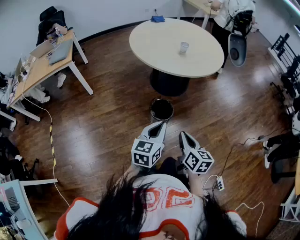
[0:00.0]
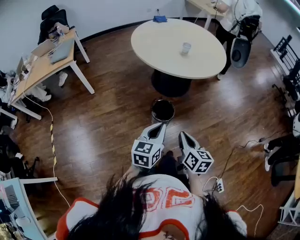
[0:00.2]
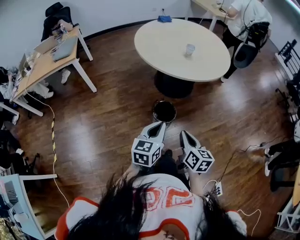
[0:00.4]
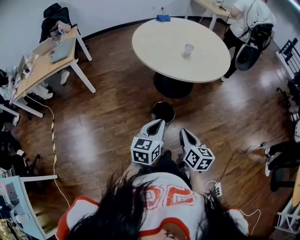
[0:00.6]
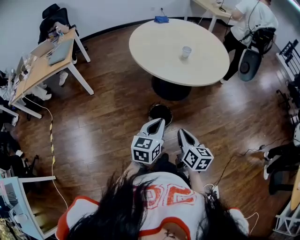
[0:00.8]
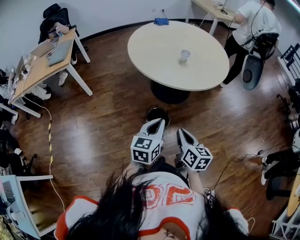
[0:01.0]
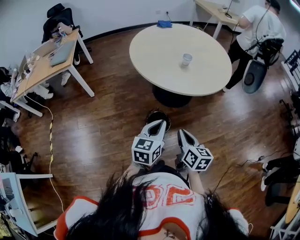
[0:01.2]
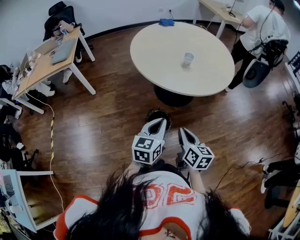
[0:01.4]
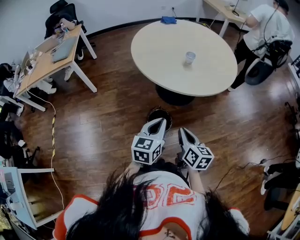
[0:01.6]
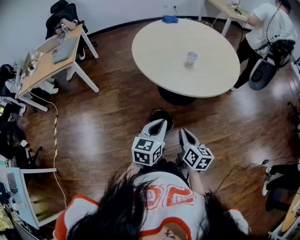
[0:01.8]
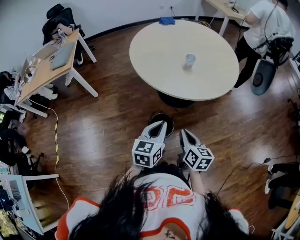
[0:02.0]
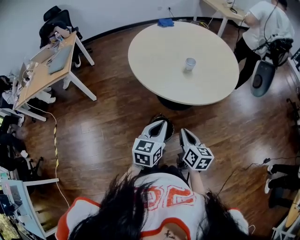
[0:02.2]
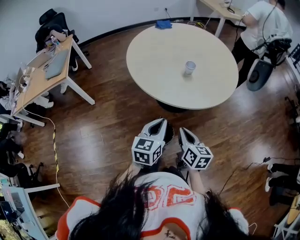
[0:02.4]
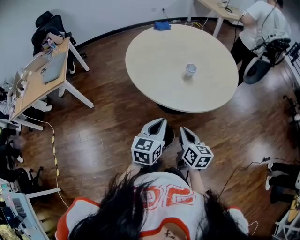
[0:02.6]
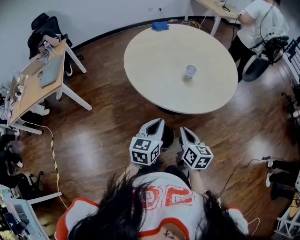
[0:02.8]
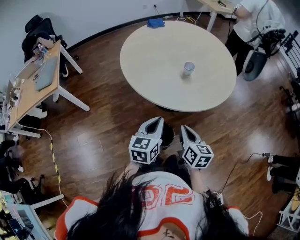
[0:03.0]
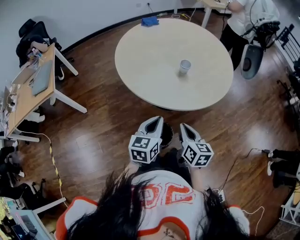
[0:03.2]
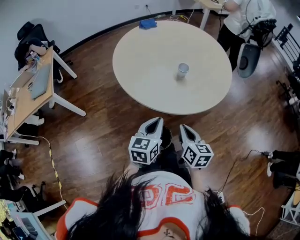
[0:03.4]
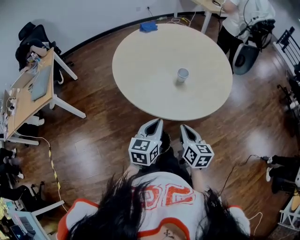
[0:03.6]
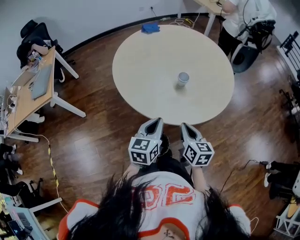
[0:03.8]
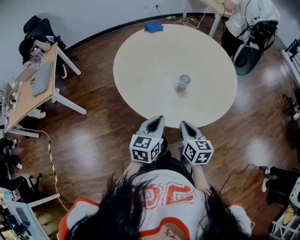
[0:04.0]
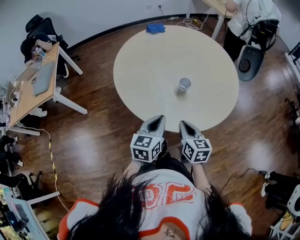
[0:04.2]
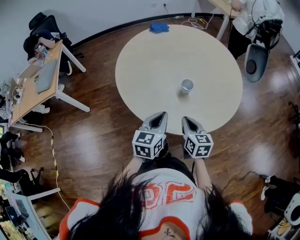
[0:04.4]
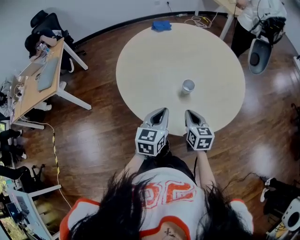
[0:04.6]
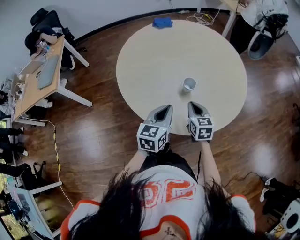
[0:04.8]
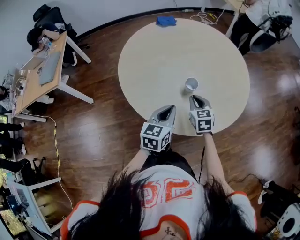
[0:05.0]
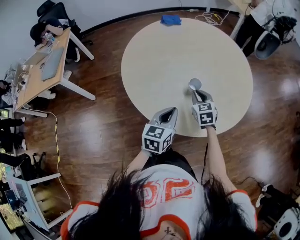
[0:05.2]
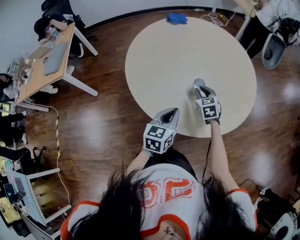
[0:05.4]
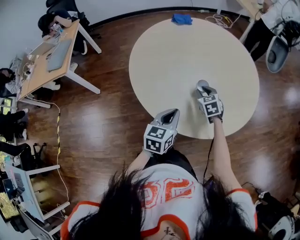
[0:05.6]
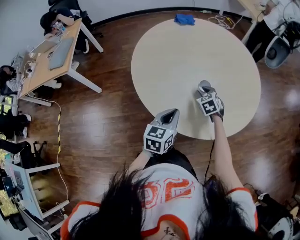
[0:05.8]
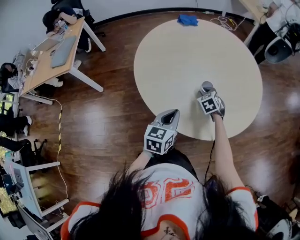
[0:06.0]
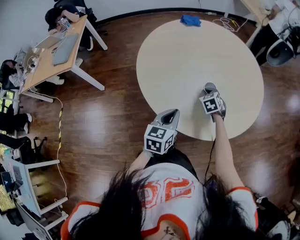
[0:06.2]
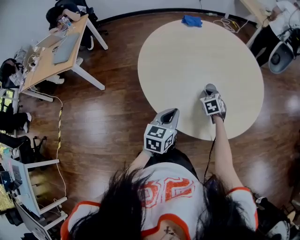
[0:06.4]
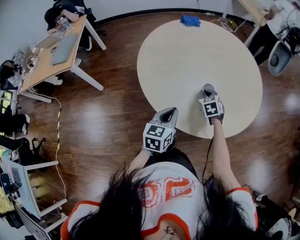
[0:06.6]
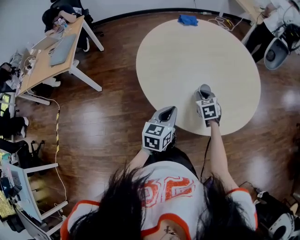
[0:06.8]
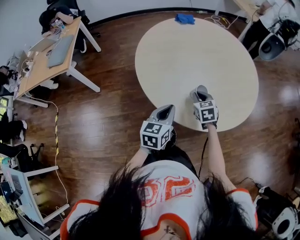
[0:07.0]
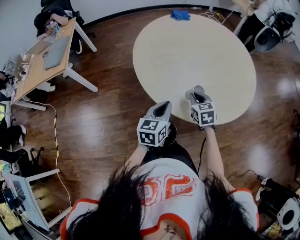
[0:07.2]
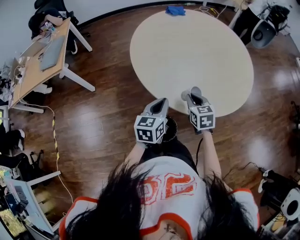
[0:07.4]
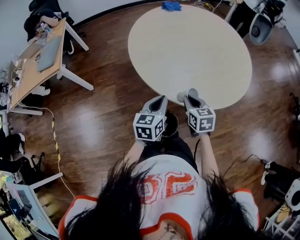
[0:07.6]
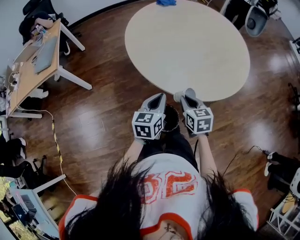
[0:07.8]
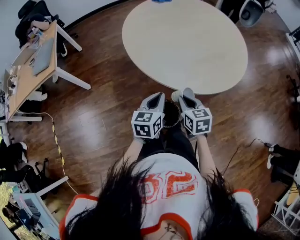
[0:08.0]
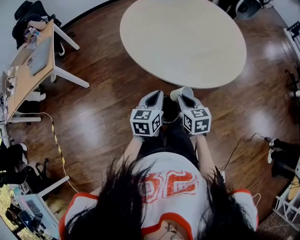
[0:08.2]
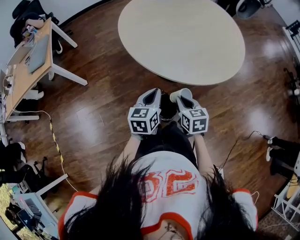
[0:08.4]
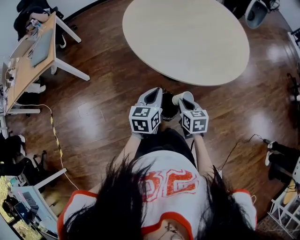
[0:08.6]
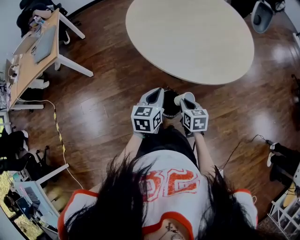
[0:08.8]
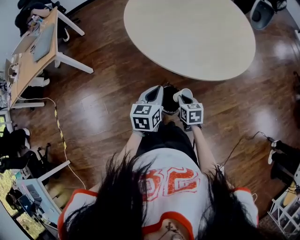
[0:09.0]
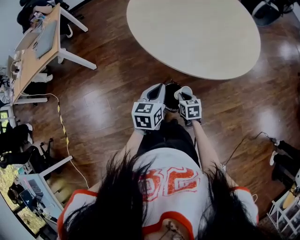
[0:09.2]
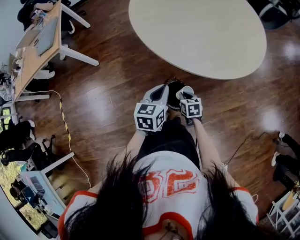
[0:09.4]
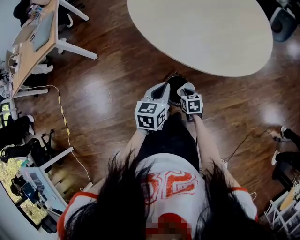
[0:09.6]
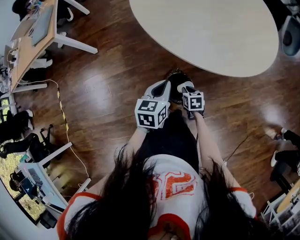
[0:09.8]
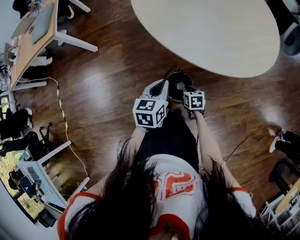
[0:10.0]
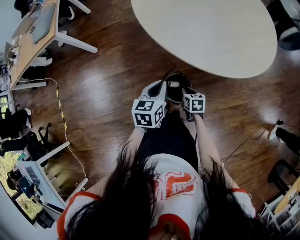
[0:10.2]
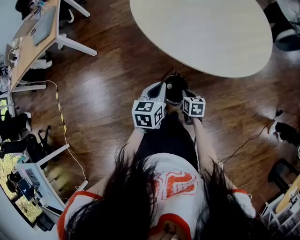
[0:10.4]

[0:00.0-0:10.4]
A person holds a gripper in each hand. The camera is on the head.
0:00.0 to 0:01.4: The right gripper goes roughly 15 cm forward; the left gripper goes roughly 15 cm forward and to the right.
0:01.4 to 0:03.0: Both grippers move forward, some 15 cm.
0:03.0 to 0:04.4: The left gripper moves forward and to the right, some 15 cm, while the right gripper is displaced forward by roughly 15 cm.
0:04.4 to 0:06.0: The right gripper travels forward and downward by some 20 cm, rotates around the line of its fingers by about 40 degrees, counterclockwise from behind, and opens its fingers.
0:06.0 to 0:07.4: The left gripper shifts roughly 5 cm to the left. Meanwhile the right gripper travels backward, upward and to the left by some 20 cm, and turns by roughly 30 degrees.
0:07.4 to 0:09.0: The left gripper travels backward by roughly 10 cm. The right gripper travels backward and downward by roughly 20 cm.
0:09.0 to 0:10.4: The right gripper heads downward, covering some 10 cm.

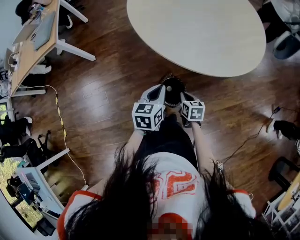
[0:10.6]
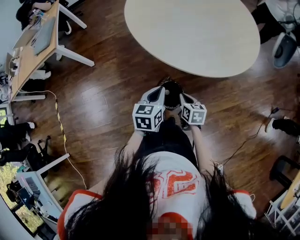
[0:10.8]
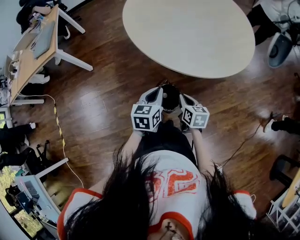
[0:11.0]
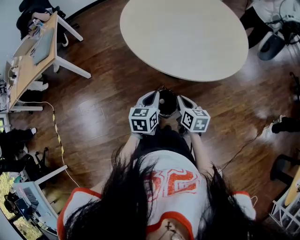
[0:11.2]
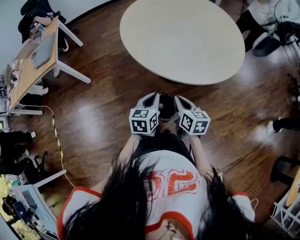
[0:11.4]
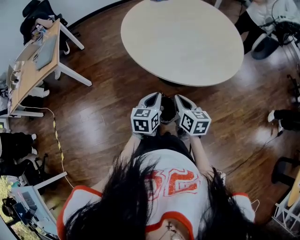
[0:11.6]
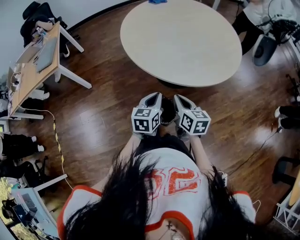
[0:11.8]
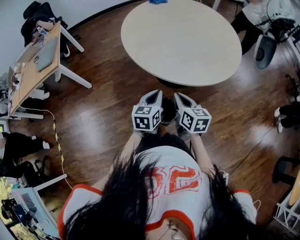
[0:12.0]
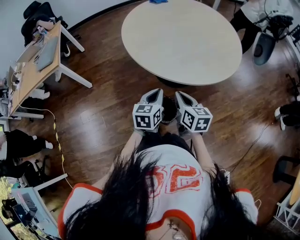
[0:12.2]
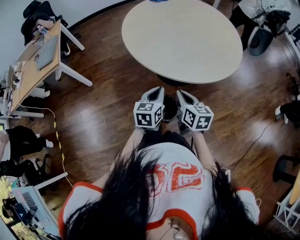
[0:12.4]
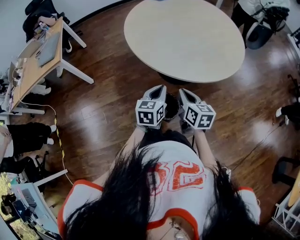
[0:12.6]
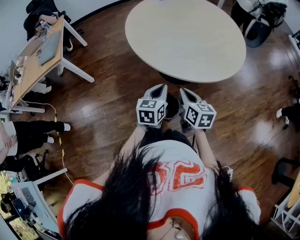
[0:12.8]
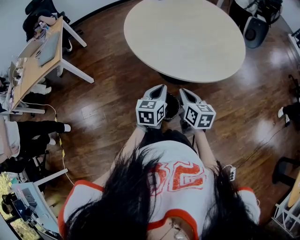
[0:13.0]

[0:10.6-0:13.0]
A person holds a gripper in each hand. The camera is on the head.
0:10.6 to 0:11.8: The left gripper ends up approximately 5 cm from where it was; the right gripper shifts approximately 20 cm upward, and swivels some 20 degrees.
0:11.8 to 0:13.0: The grippers make only small movements.

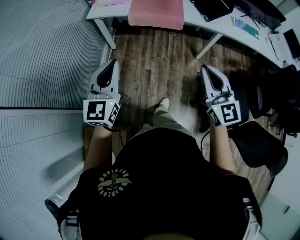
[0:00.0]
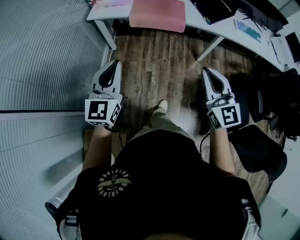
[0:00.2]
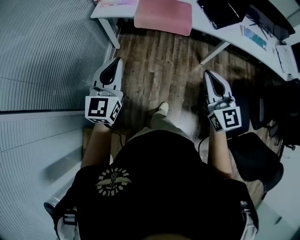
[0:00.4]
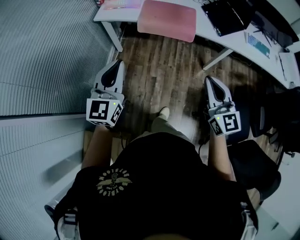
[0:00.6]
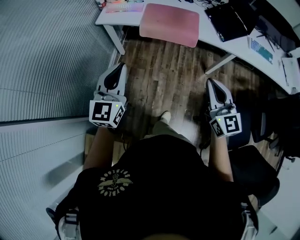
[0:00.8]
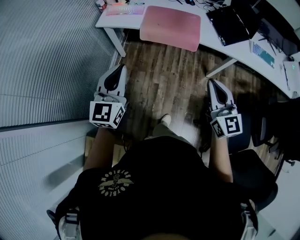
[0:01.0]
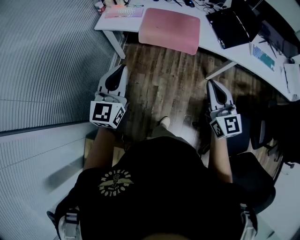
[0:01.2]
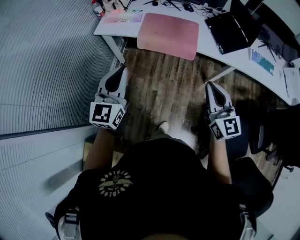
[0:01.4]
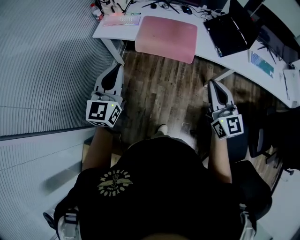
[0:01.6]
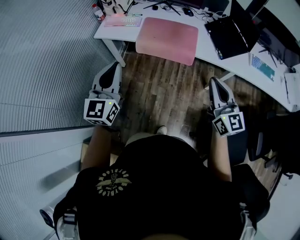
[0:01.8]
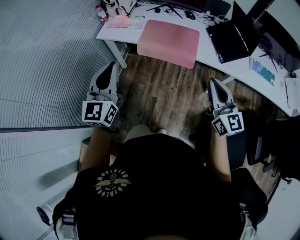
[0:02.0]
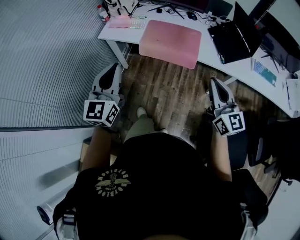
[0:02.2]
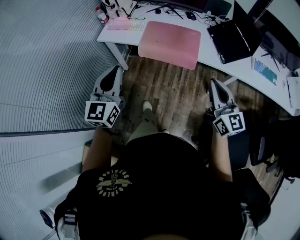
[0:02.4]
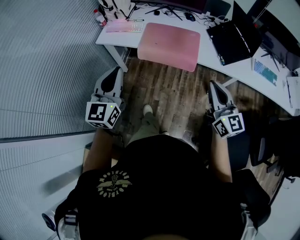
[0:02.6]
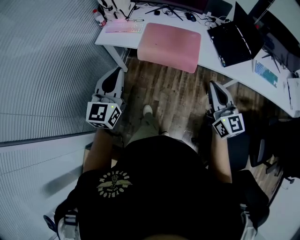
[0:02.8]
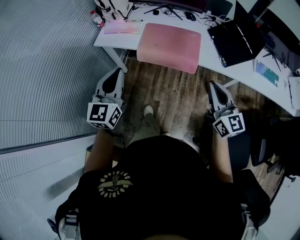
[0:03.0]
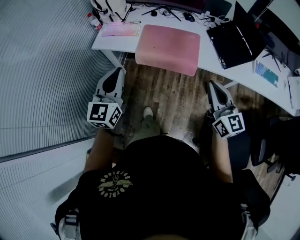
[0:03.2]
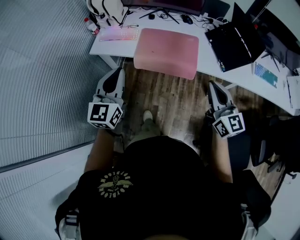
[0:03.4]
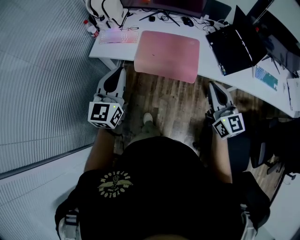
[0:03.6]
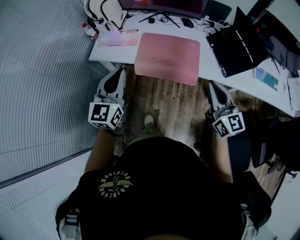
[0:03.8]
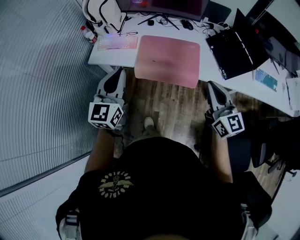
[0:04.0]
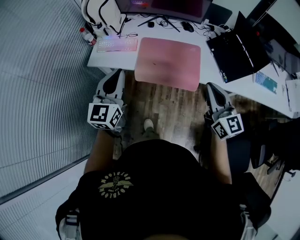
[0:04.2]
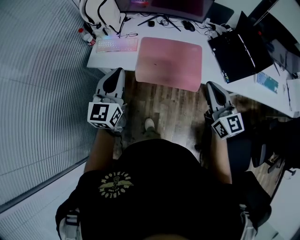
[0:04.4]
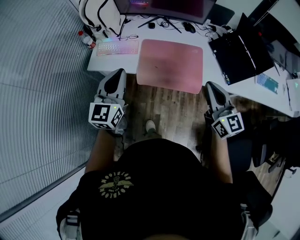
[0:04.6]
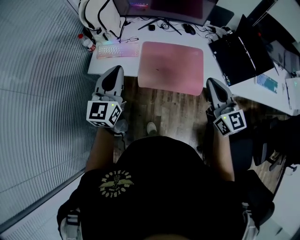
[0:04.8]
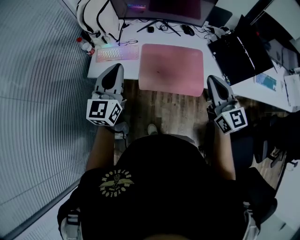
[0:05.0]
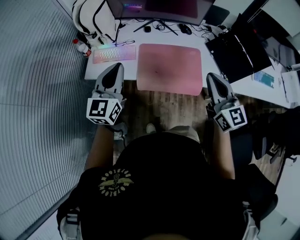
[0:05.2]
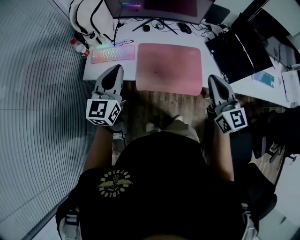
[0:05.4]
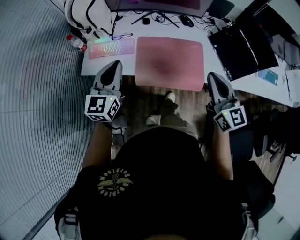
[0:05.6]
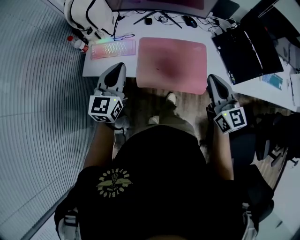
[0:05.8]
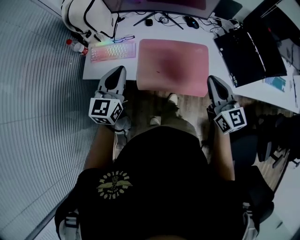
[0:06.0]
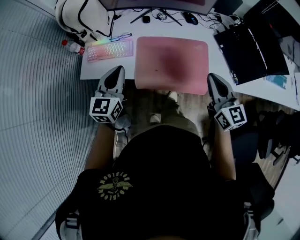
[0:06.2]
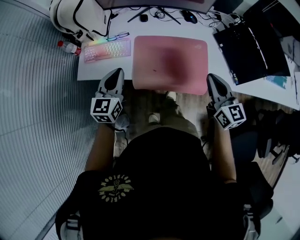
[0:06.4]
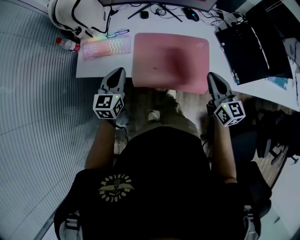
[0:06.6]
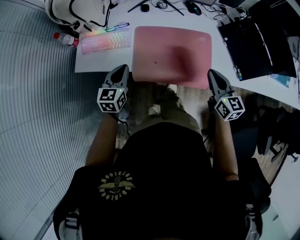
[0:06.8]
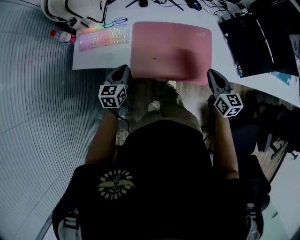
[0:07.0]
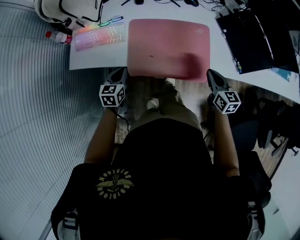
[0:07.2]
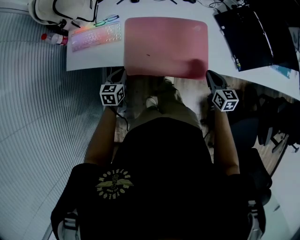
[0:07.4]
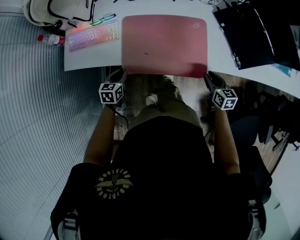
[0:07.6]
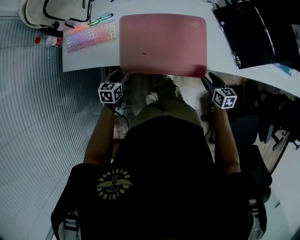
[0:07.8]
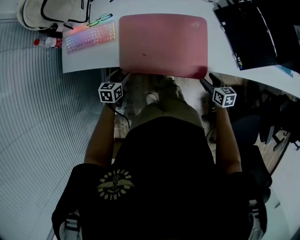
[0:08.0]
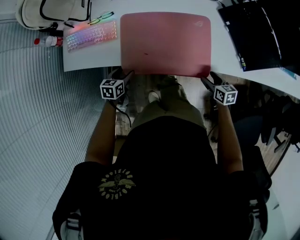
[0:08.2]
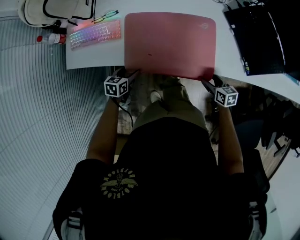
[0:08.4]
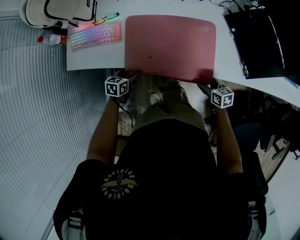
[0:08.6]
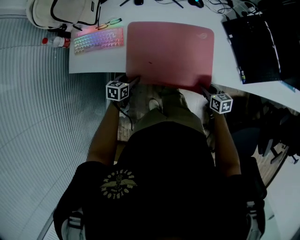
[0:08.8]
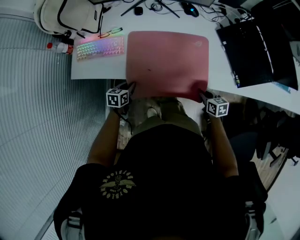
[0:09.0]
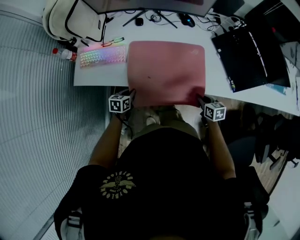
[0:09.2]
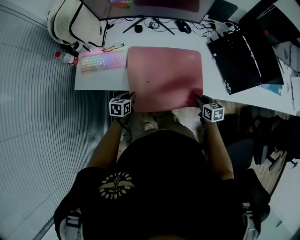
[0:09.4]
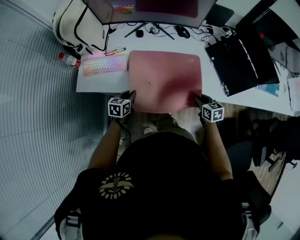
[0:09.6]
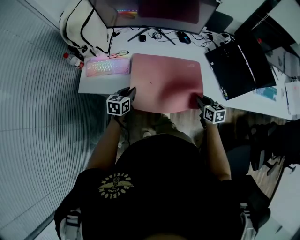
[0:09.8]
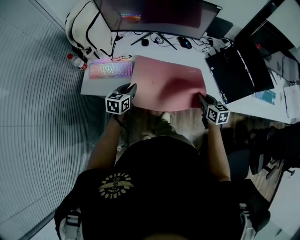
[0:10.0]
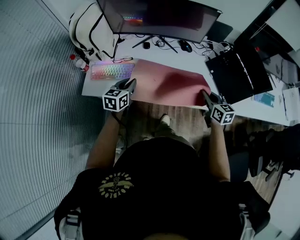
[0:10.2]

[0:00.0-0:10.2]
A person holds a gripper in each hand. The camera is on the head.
0:00.0 to 0:01.4: The two grippers go approximately 20 cm forward.
0:01.4 to 0:03.0: Both grippers move forward, roughly 10 cm.
0:03.0 to 0:04.4: Both grippers travel together forward, about 20 cm.
0:04.4 to 0:05.8: The left gripper shifts some 15 cm forward and downward; the right gripper moves forward, about 10 cm.
0:05.8 to 0:07.2: The grippers both shift downward by about 25 cm. The left gripper swivels roughly 30 degrees. Meanwhile the right gripper changes its angle by roughly 30 degrees.
0:07.2 to 0:08.8: Both grippers travel together downward, roughly 15 cm. The right gripper changes its angle by roughly 30 degrees, and opens, then closes again. The left gripper swivels roughly 20 degrees, and opens its fingers.
0:08.8 to 0:10.2: Both grippers travel together upward, roughly 25 cm. The right gripper swivels approximately 30 degrees; the left gripper turns by approximately 30 degrees, and closes up.
